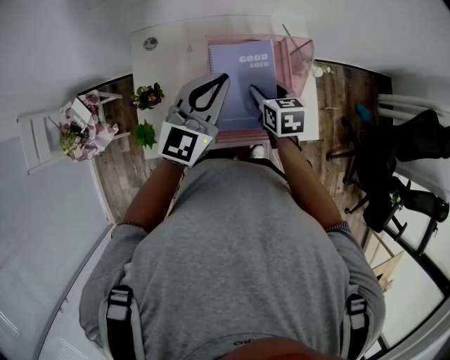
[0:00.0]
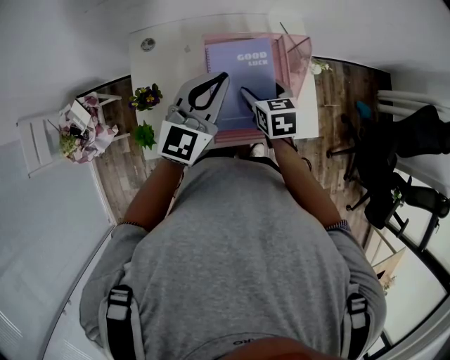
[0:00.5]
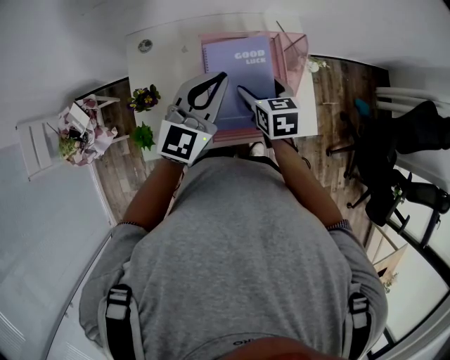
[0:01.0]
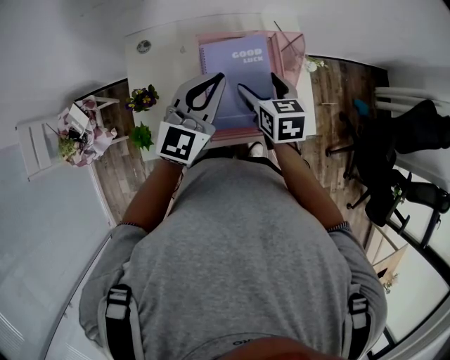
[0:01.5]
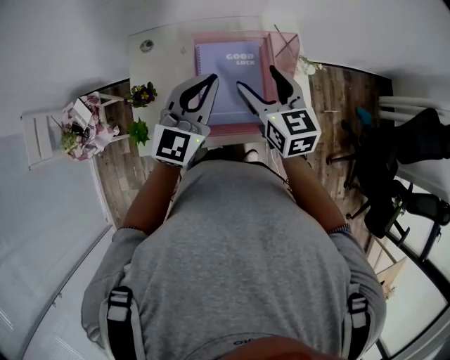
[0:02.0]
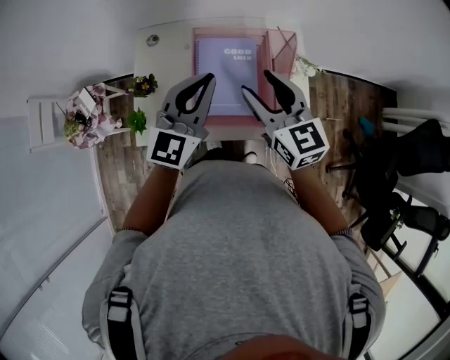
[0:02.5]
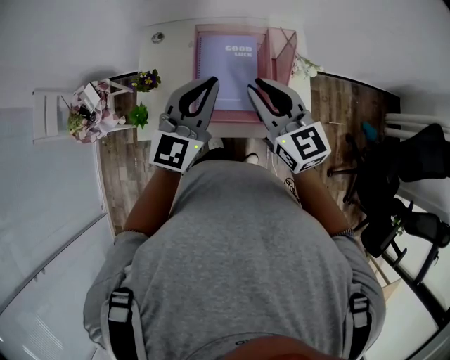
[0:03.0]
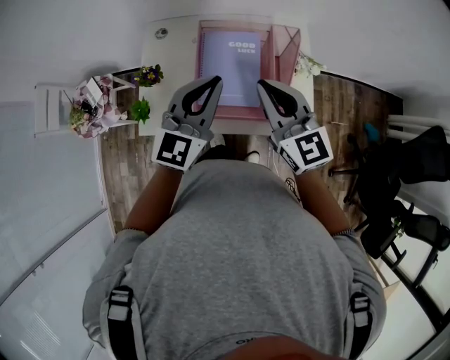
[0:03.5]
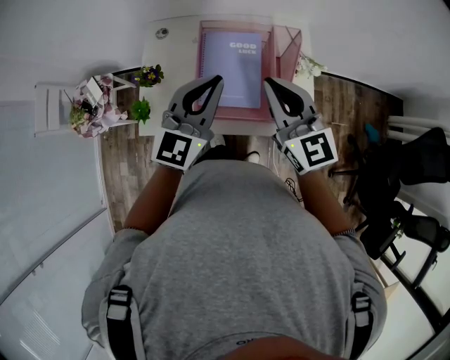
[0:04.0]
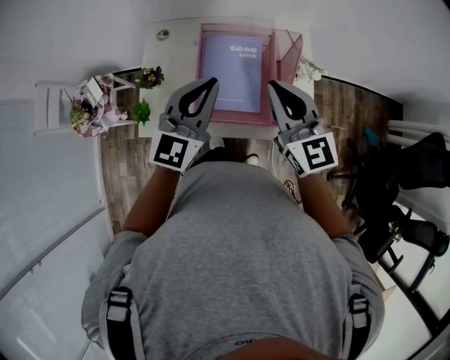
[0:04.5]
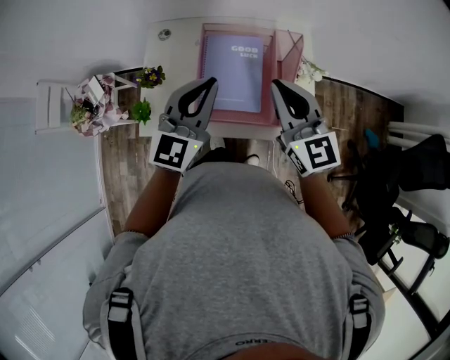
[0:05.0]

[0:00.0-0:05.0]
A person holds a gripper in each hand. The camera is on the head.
0:00.0 to 0:02.5: The left gripper heads backward, covering roughly 5 cm, while the right gripper goes roughly 15 cm upward, angles its fingers upward, by some 30 degrees, and opens, then closes again.
0:02.5 to 0:05.0: The right gripper closes its fingers.

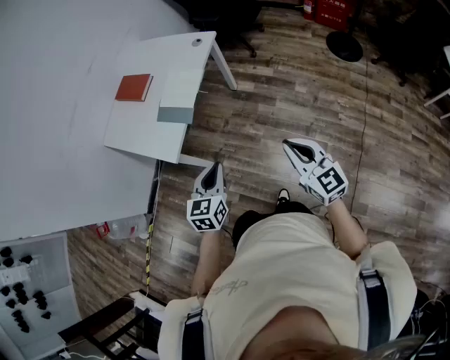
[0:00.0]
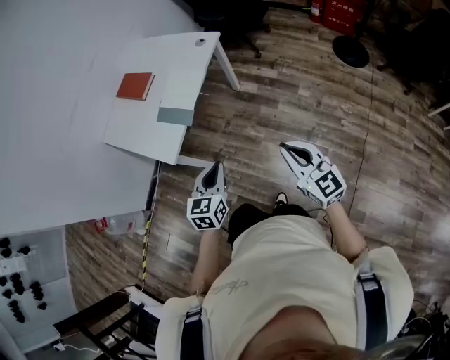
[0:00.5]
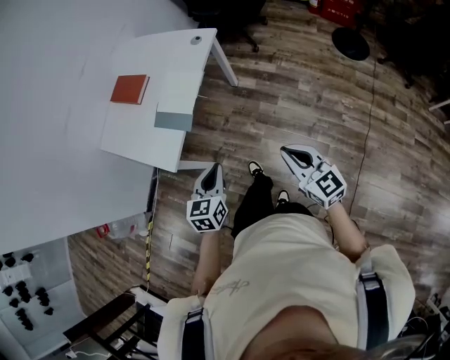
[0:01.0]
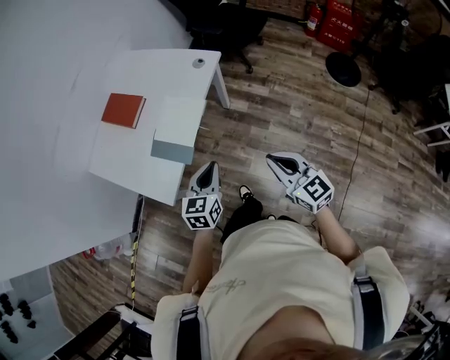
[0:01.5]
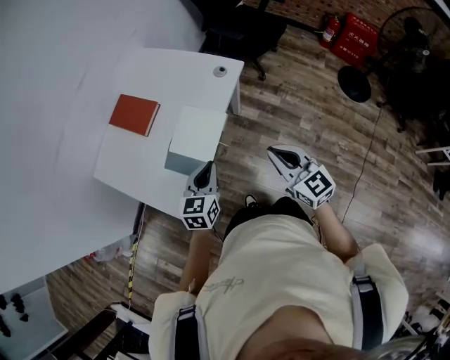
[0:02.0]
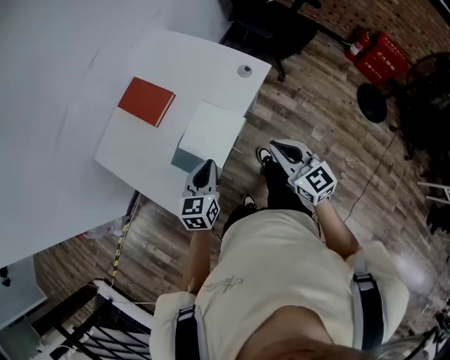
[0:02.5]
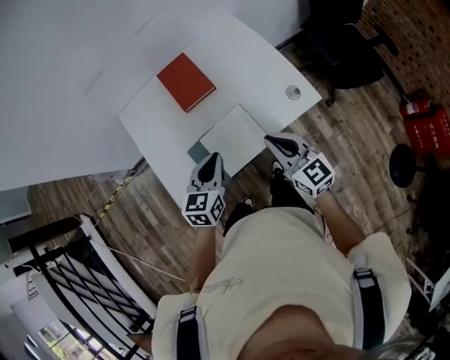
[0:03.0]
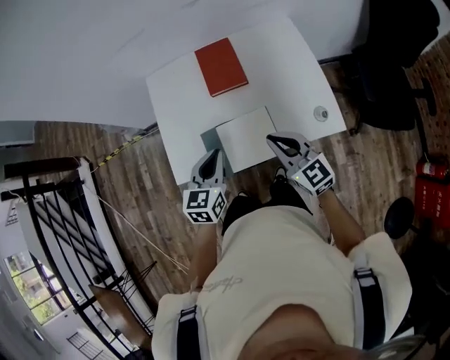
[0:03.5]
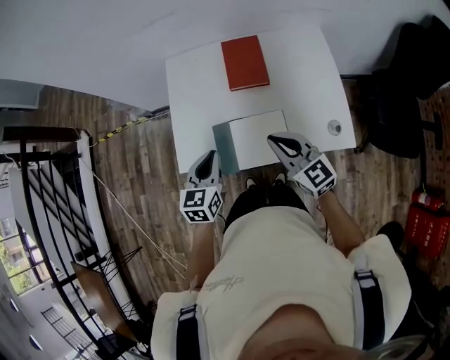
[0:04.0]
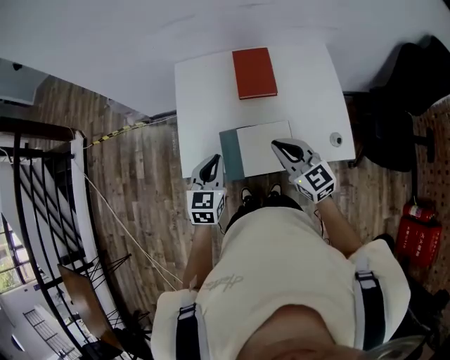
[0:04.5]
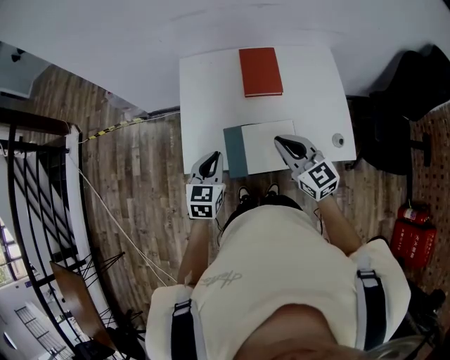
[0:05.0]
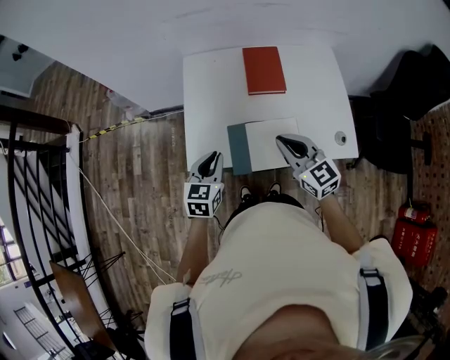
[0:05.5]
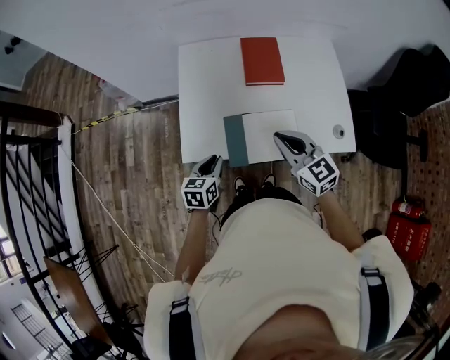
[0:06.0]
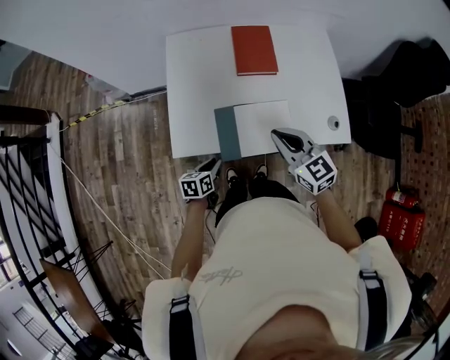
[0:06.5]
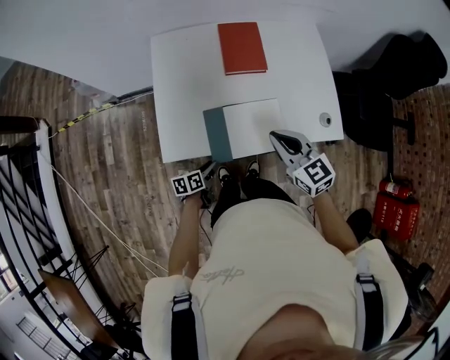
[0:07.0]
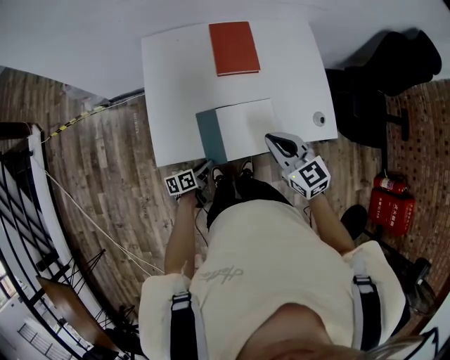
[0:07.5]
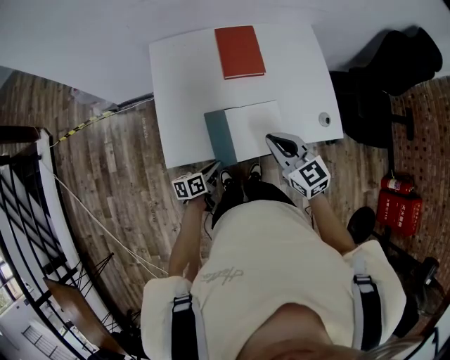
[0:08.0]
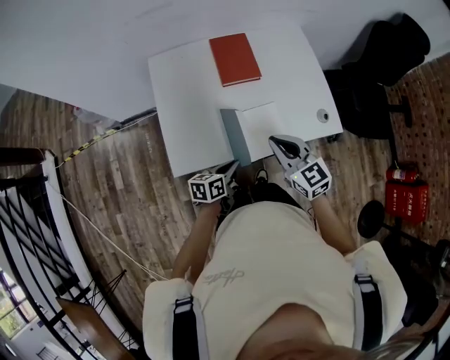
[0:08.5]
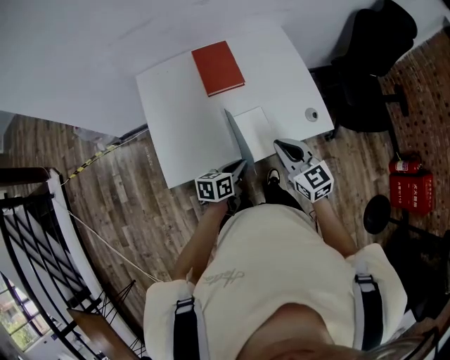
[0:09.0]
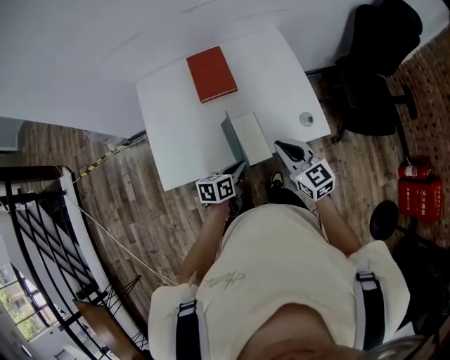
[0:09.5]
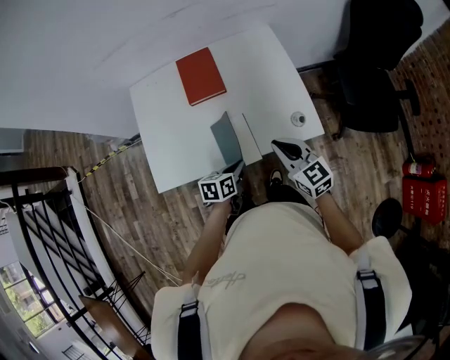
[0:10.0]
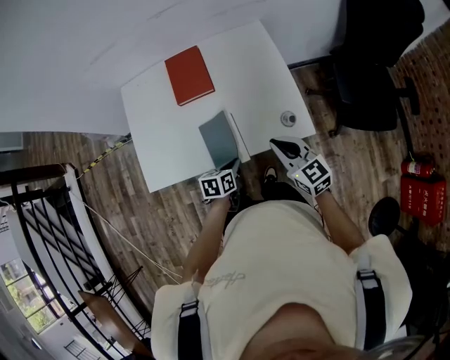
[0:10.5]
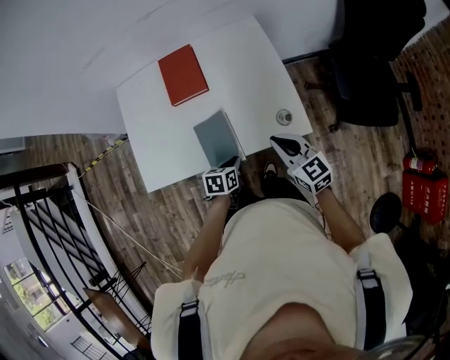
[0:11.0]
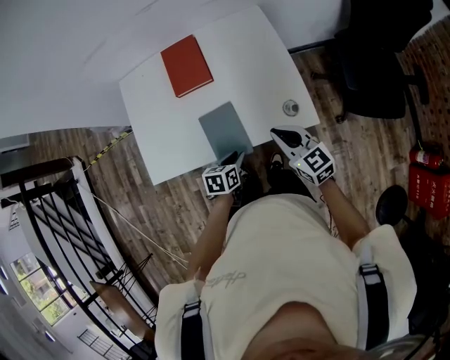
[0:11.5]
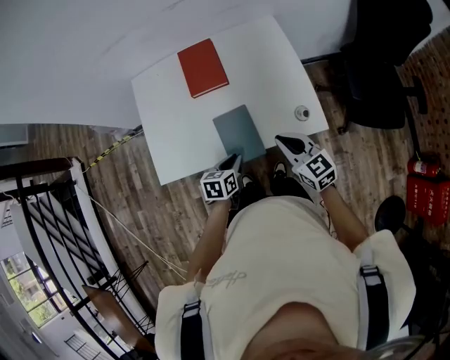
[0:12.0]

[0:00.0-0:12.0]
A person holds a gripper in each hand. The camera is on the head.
0:00.0 to 0:02.0: The grippers both shift forward by about 30 cm.
0:02.0 to 0:04.0: The right gripper moves approximately 25 cm, and turns by approximately 60 degrees. Meanwhile the left gripper changes place by about 10 cm, and swivels about 60 degrees.
0:04.0 to 0:06.0: The left gripper shifts some 15 cm downward and to the left. The right gripper travels to the left by approximately 5 cm.
0:06.0 to 0:08.0: The left gripper heads downward, covering roughly 10 cm, and changes its angle by about 40 degrees.
0:08.0 to 0:10.0: Both grippers move to the right, approximately 20 cm. The left gripper rotates about 20 degrees.

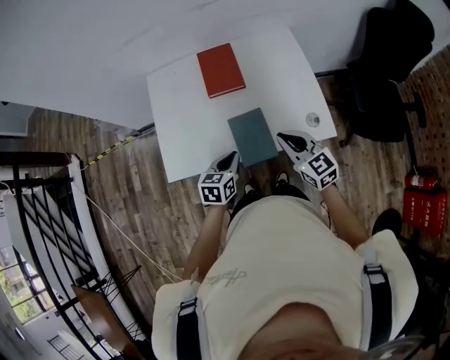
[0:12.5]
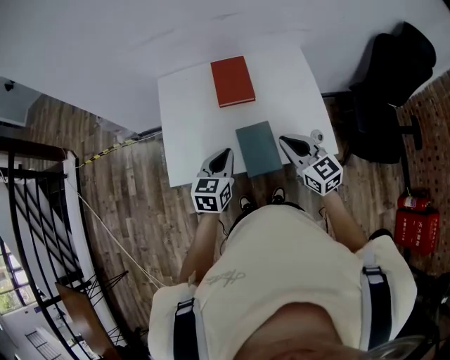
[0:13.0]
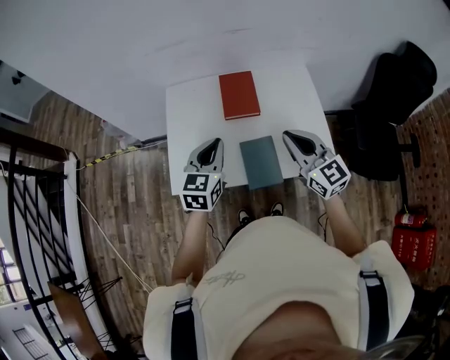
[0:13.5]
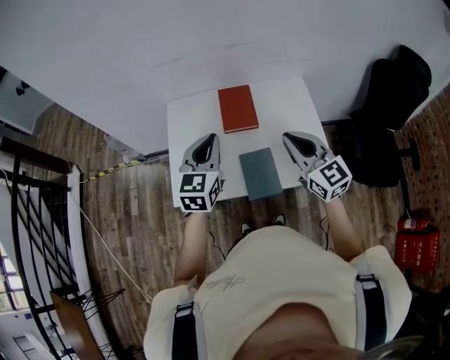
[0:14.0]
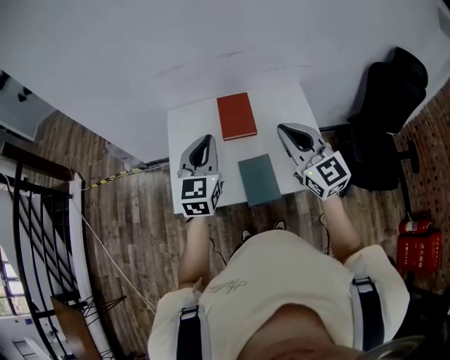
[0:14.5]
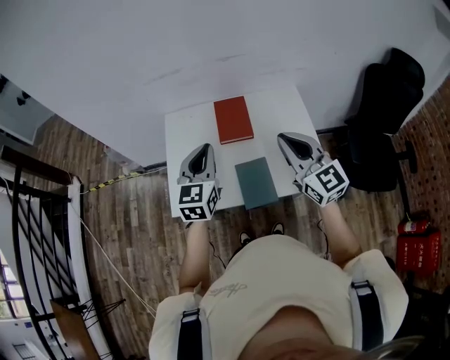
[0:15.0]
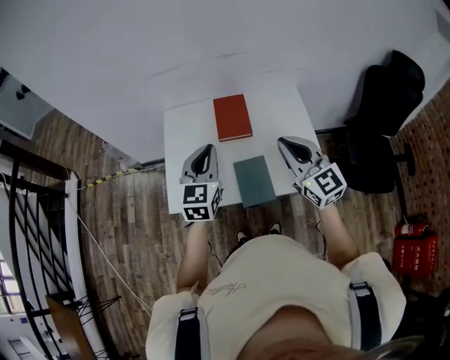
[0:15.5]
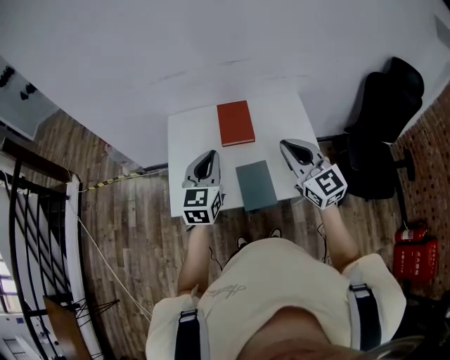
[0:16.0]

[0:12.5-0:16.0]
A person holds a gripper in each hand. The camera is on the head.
0:12.5 to 0:14.5: Both grippers move upward, some 25 cm. The left gripper turns by some 40 degrees. Meanwhile the right gripper turns by approximately 20 degrees.
0:14.5 to 0:16.0: There are only small adjustments of the grippers.

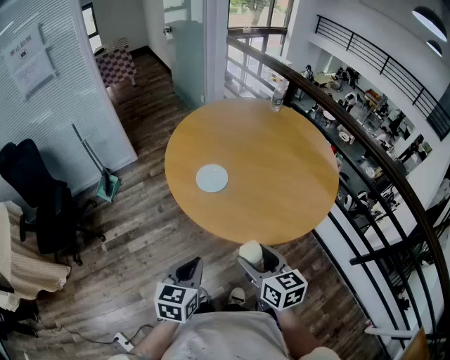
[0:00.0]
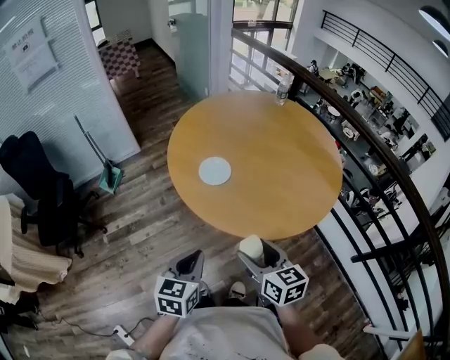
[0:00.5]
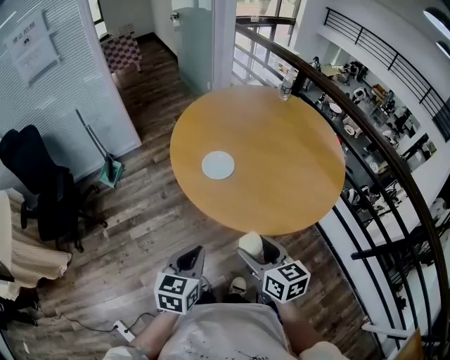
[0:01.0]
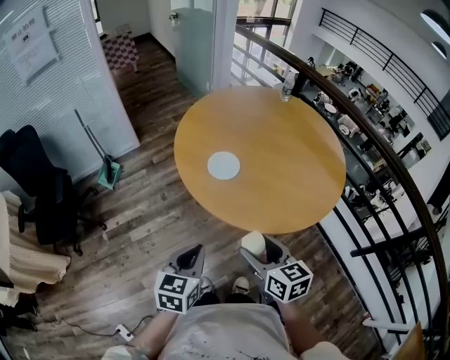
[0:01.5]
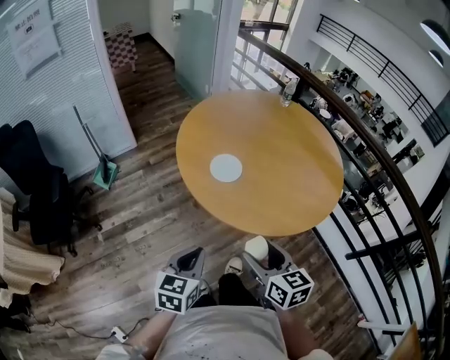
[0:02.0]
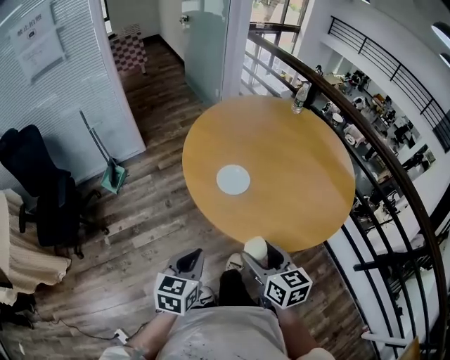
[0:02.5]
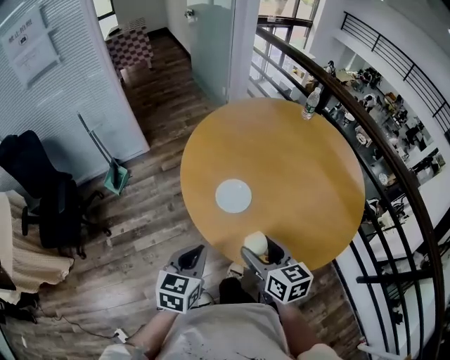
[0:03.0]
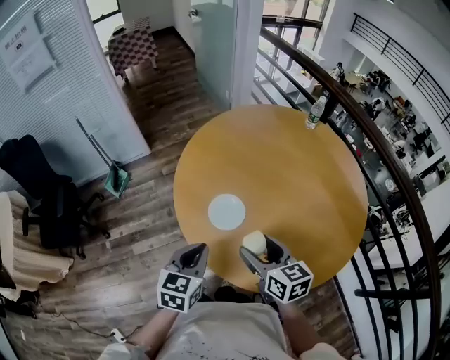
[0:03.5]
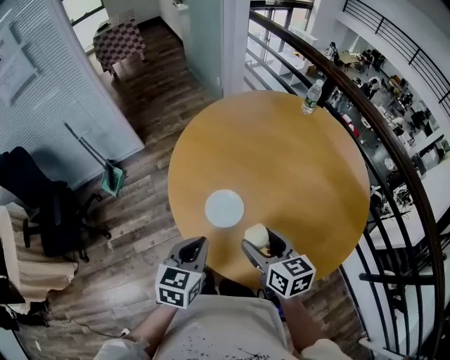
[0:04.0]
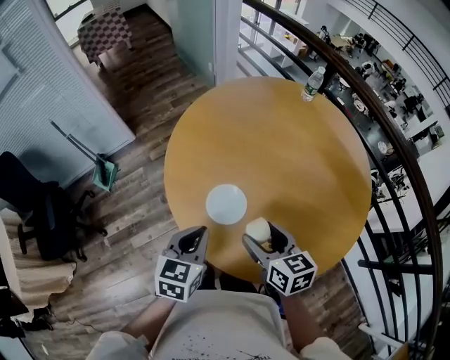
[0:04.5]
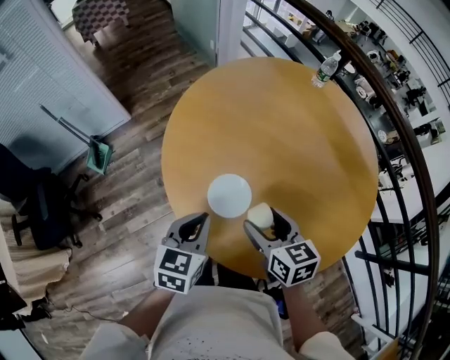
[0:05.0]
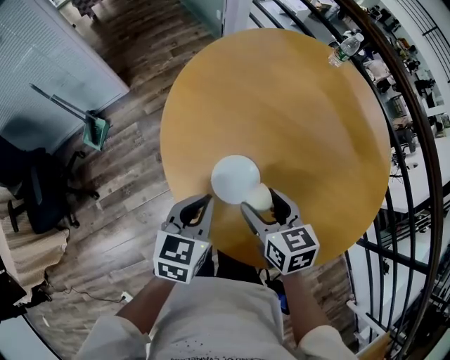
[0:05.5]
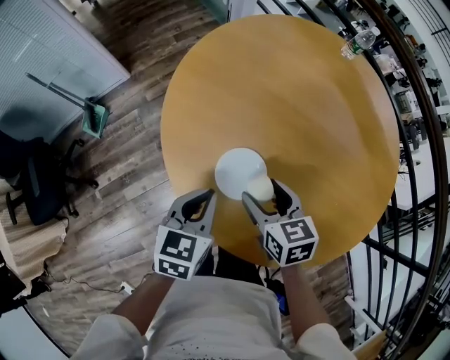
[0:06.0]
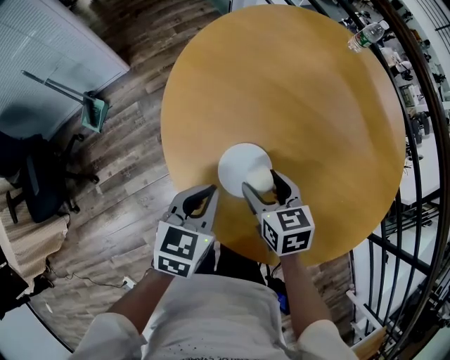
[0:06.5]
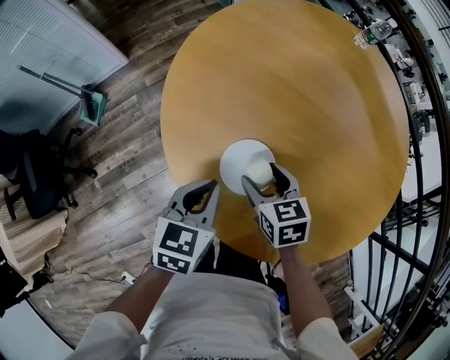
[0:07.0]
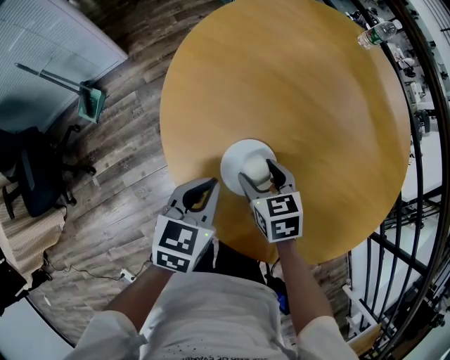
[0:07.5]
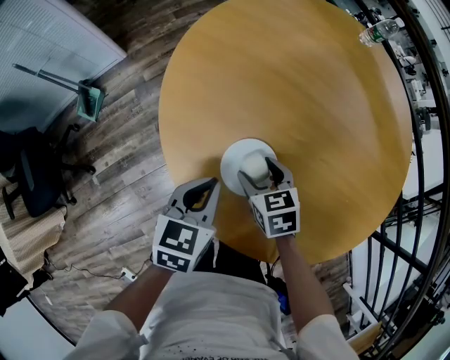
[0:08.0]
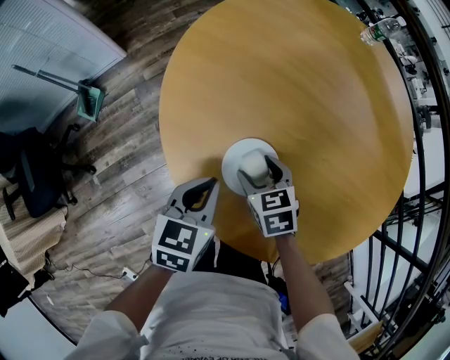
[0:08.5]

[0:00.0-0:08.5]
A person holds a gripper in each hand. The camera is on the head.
0:00.0 to 0:02.0: The grippers both shift to the left by roughly 5 cm.
0:02.0 to 0:04.0: The grippers both shift forward by some 25 cm.
0:04.0 to 0:06.5: The right gripper shifts about 20 cm downward, forward and to the left; the left gripper shifts approximately 15 cm downward and forward.
0:06.5 to 0:08.5: The right gripper heads downward, covering about 5 cm.
